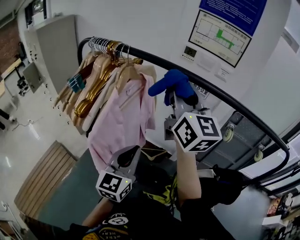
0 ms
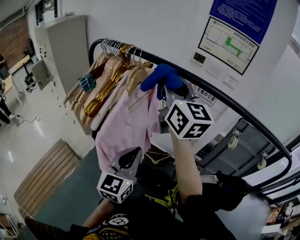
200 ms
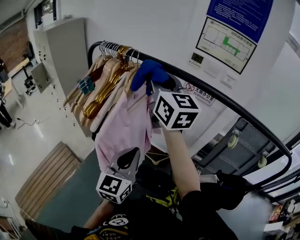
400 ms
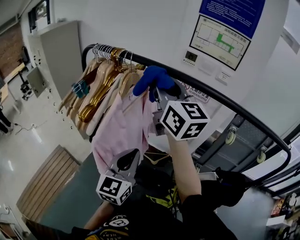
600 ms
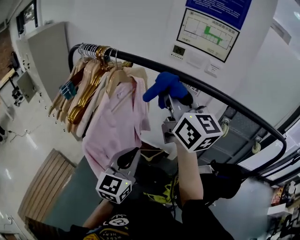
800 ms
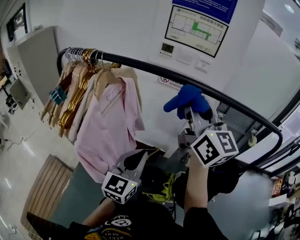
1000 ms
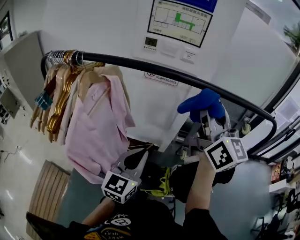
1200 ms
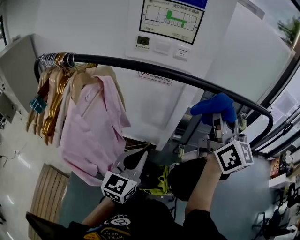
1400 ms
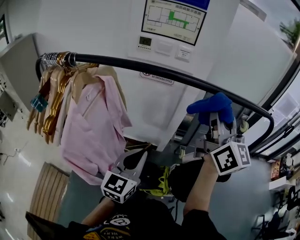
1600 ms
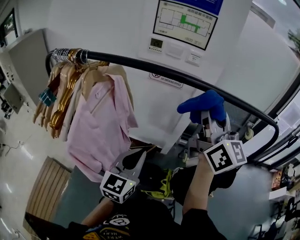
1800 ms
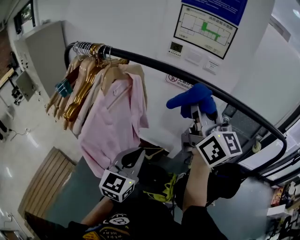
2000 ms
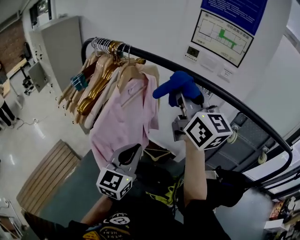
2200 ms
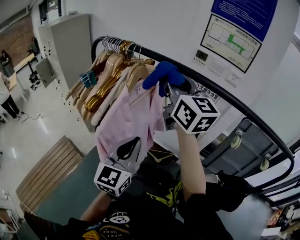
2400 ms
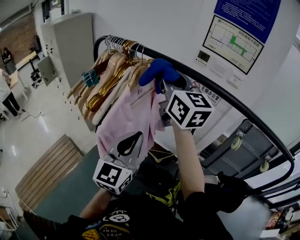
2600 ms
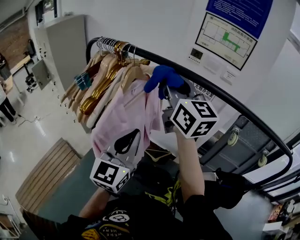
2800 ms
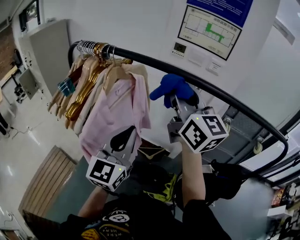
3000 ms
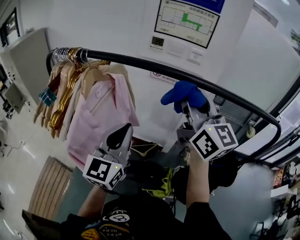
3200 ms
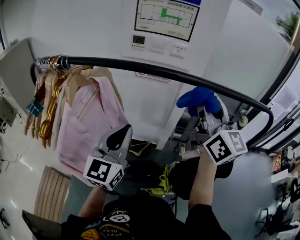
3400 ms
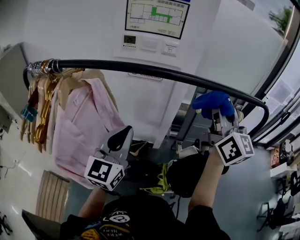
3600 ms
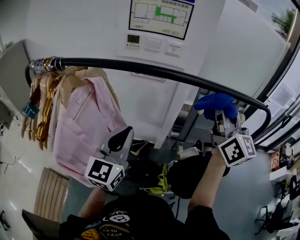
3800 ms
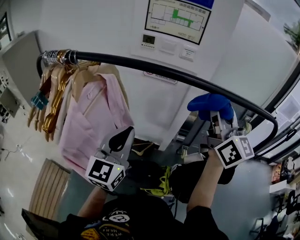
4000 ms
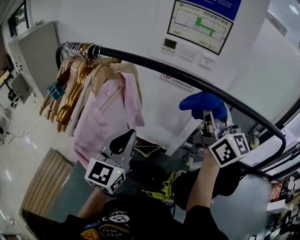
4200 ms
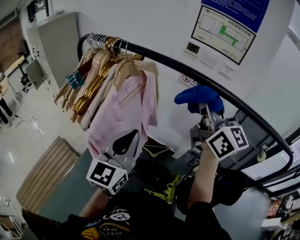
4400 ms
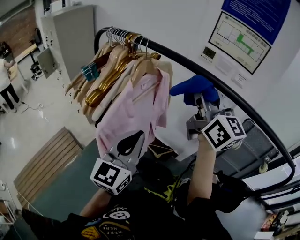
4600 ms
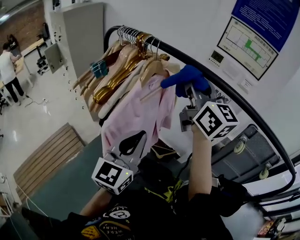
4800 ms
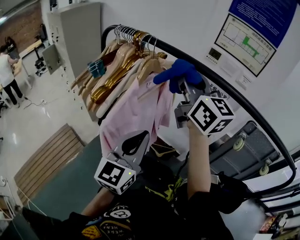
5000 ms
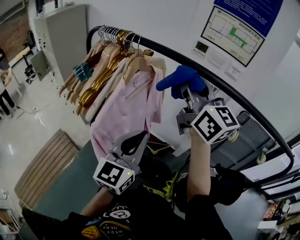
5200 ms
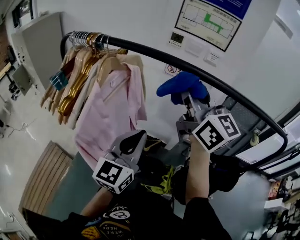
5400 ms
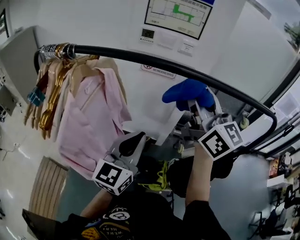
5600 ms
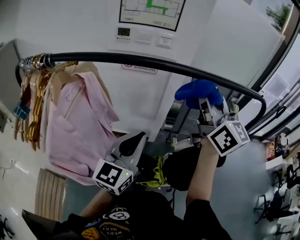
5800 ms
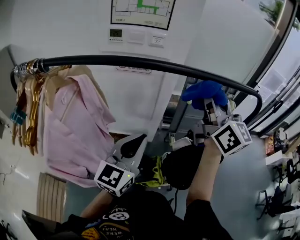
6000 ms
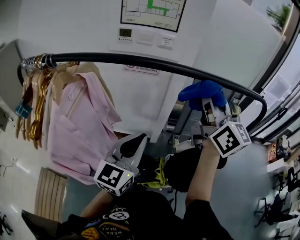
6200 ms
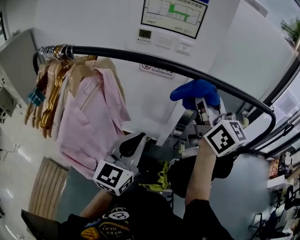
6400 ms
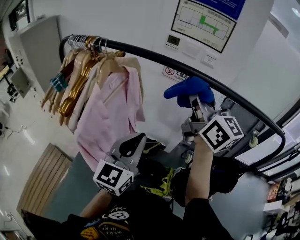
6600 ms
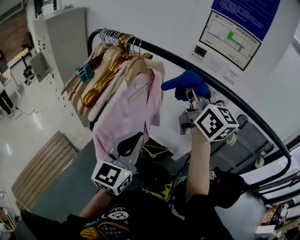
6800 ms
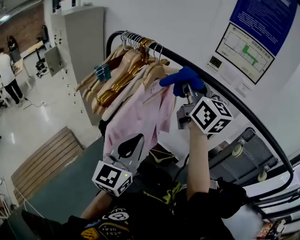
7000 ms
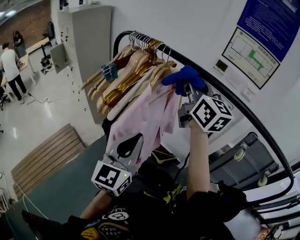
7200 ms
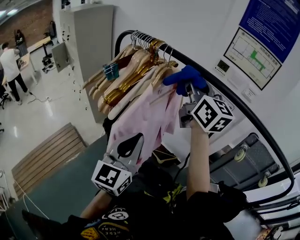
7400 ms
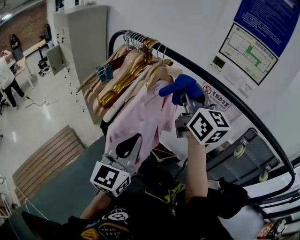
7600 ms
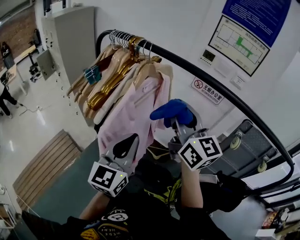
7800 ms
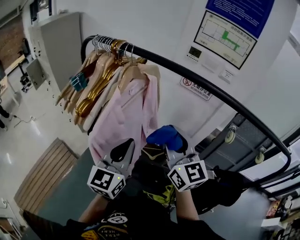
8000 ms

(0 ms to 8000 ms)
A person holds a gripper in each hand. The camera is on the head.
0 ms - 1600 ms: The right gripper moves roughly 25 cm, and swivels some 20 degrees. The left gripper shifts by some 15 cm, and turns by roughly 20 degrees.
1600 ms - 3200 ms: The left gripper moves about 15 cm.
3200 ms - 4800 ms: The right gripper changes place by about 20 cm, and swivels about 20 degrees; the left gripper shifts by approximately 10 cm.
4800 ms - 6400 ms: The left gripper moves approximately 15 cm, and turns by some 30 degrees, while the right gripper moves approximately 25 cm, and swivels roughly 30 degrees.
6400 ms - 8000 ms: The right gripper moves roughly 25 cm, and changes its angle by some 20 degrees. The left gripper moves roughly 15 cm, and turns by some 20 degrees.

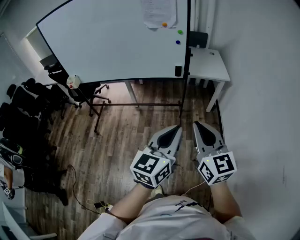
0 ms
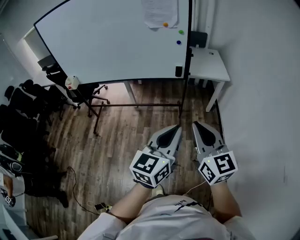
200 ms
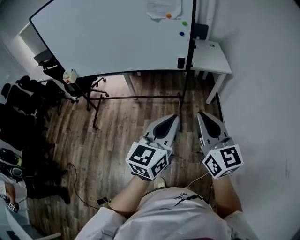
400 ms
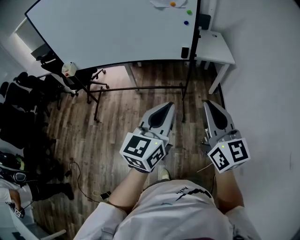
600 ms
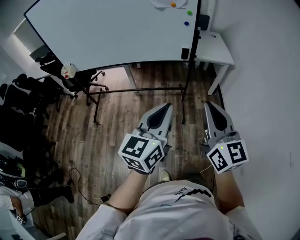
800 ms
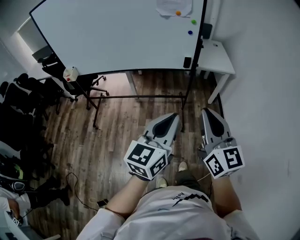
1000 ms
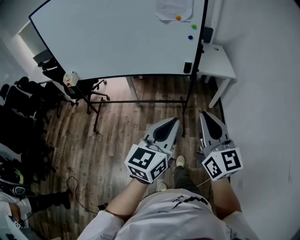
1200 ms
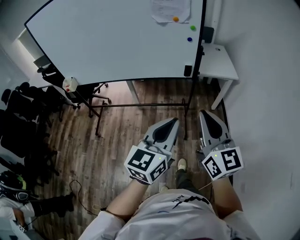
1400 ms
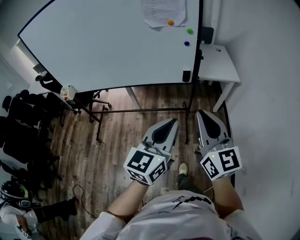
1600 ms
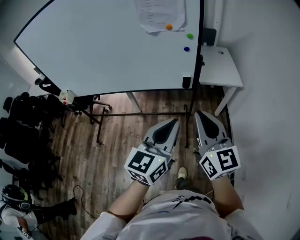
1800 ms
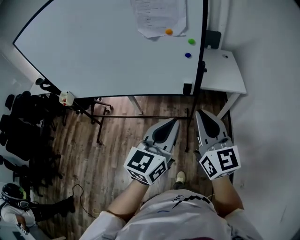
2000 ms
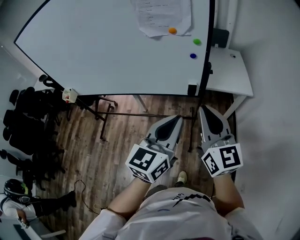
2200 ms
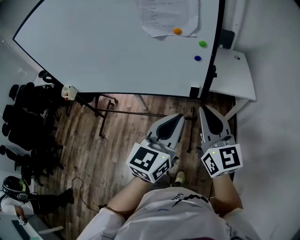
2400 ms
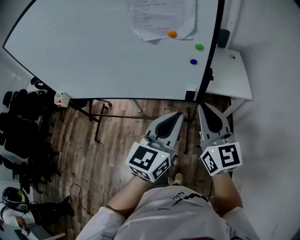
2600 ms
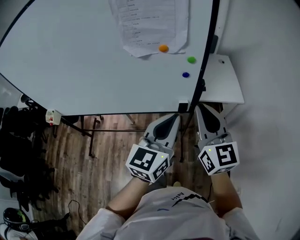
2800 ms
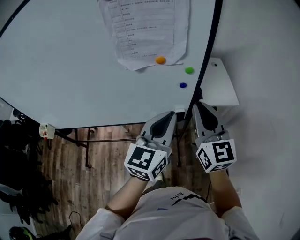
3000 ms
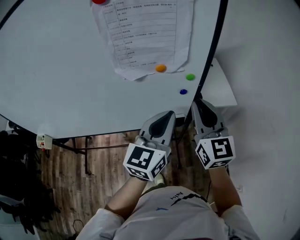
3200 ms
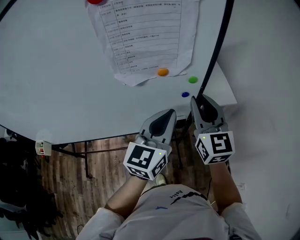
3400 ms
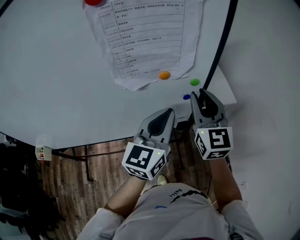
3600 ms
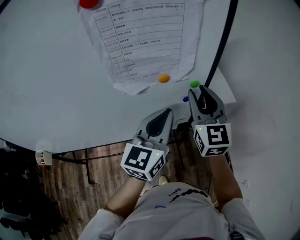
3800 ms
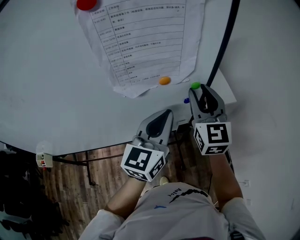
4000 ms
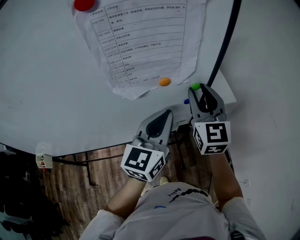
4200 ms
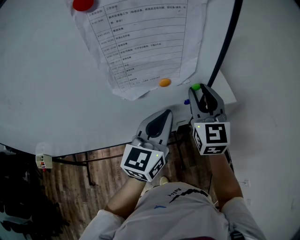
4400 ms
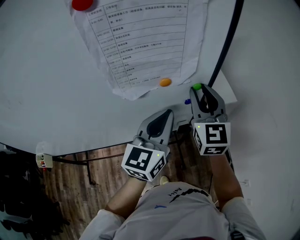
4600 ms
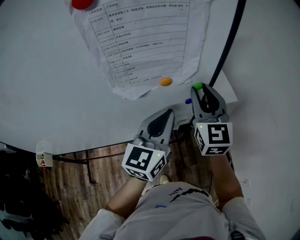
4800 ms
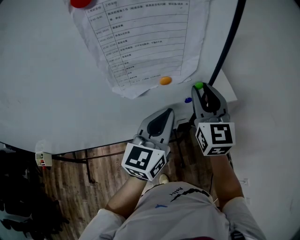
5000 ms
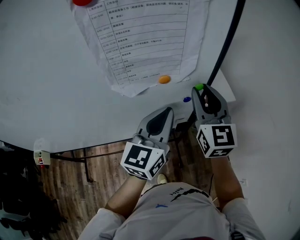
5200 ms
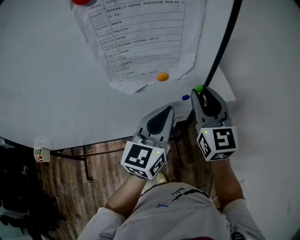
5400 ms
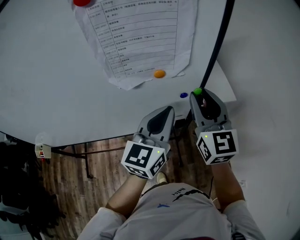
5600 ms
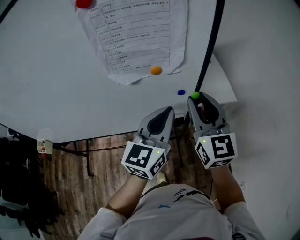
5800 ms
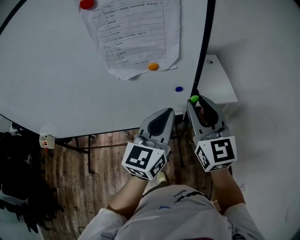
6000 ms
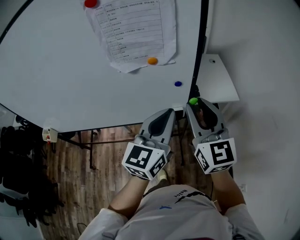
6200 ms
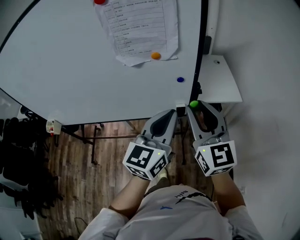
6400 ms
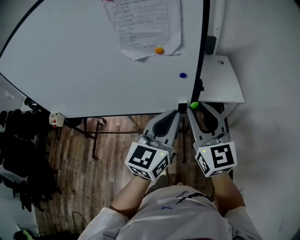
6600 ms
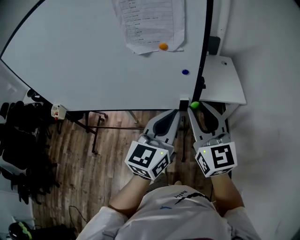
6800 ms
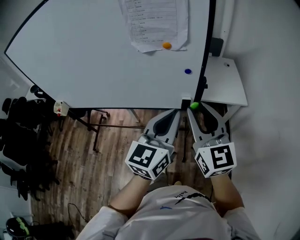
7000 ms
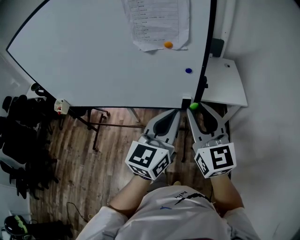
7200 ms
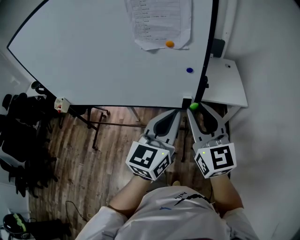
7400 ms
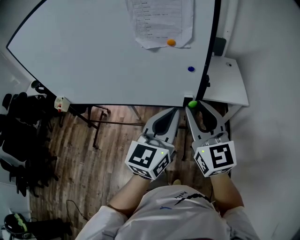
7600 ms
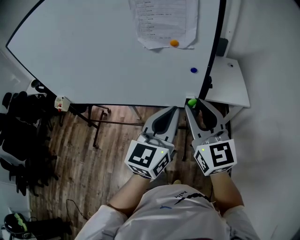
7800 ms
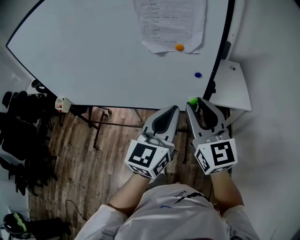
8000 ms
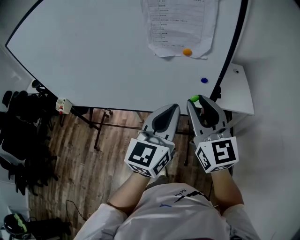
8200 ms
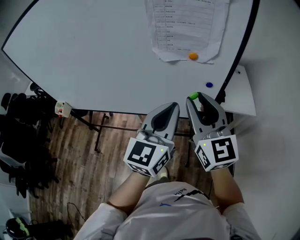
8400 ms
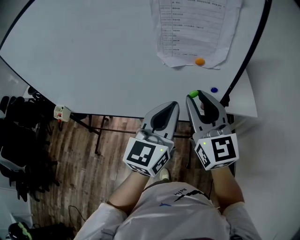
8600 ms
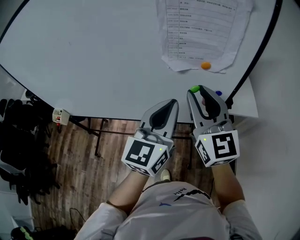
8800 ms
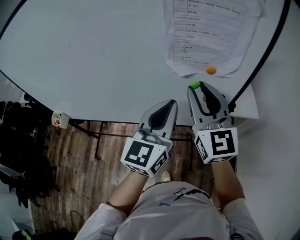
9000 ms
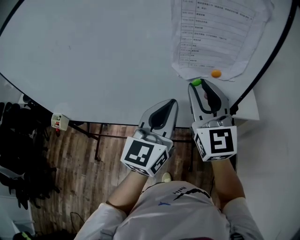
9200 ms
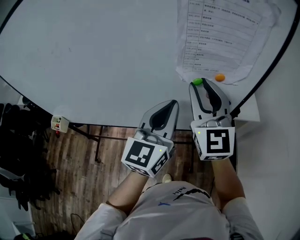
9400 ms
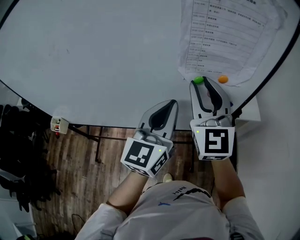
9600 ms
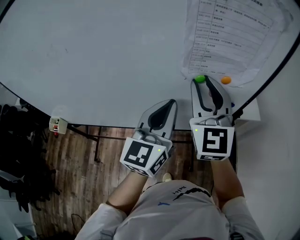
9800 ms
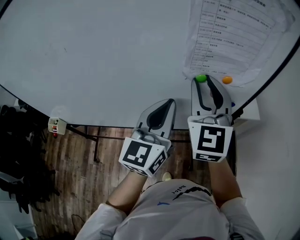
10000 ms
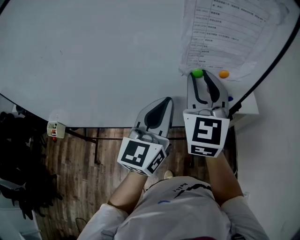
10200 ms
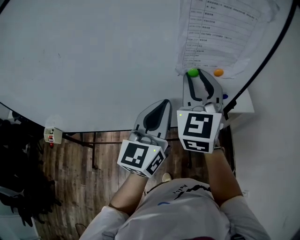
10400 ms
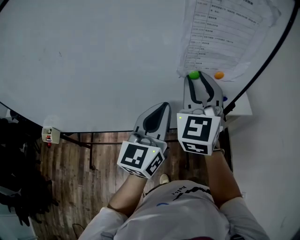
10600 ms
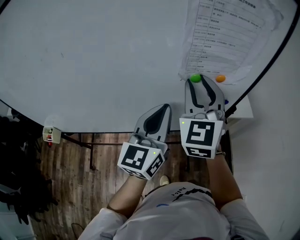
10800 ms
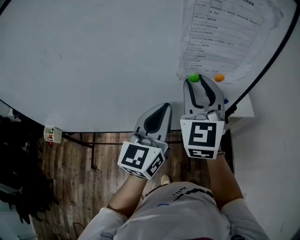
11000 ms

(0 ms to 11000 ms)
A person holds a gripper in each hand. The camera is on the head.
0 ms - 1600 ms: The two grippers go roughly 20 cm forward and to the left.
1600 ms - 3200 ms: Both grippers move forward, roughly 40 cm.
3200 ms - 4800 ms: The left gripper goes roughly 5 cm forward. Meanwhile the right gripper shifts roughly 10 cm forward, and opens up.
4800 ms - 6200 ms: The right gripper travels backward by roughly 15 cm. Meanwhile the left gripper travels backward and to the right by some 10 cm.
6200 ms - 7800 ms: Both grippers move backward, some 10 cm.
7800 ms - 9400 ms: Both grippers travel together forward and to the left, approximately 25 cm.

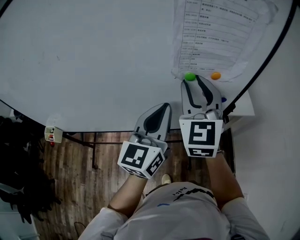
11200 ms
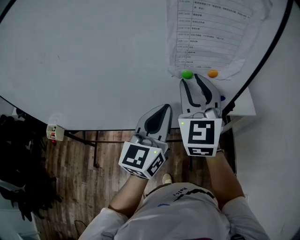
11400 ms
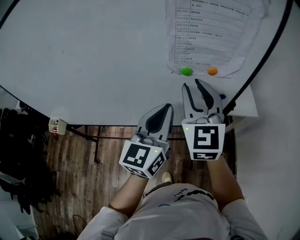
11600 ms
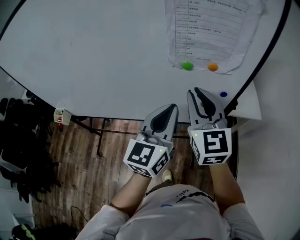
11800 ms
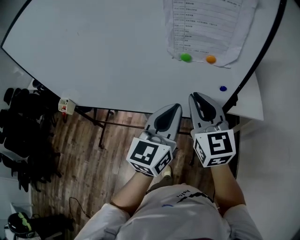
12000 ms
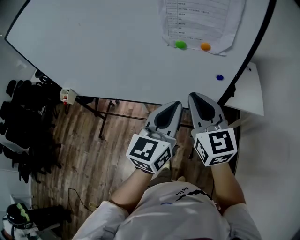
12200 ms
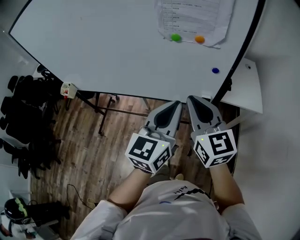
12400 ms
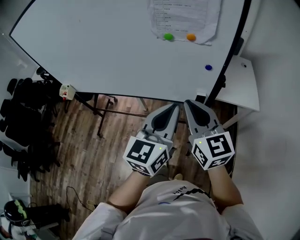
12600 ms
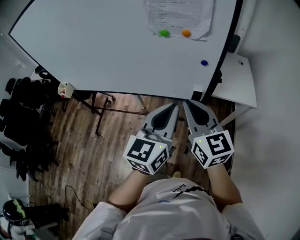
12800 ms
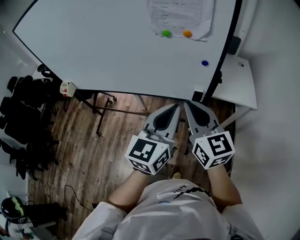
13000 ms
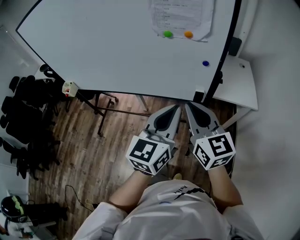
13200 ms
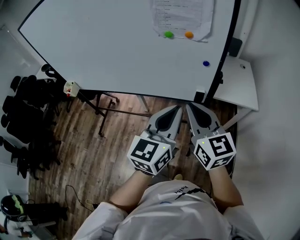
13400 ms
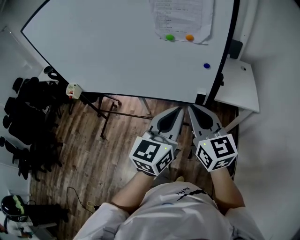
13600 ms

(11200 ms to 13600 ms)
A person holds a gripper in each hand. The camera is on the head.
11200 ms - 12400 ms: The right gripper goes some 20 cm backward, downward and to the right, turns by approximately 40 degrees, and closes up; the left gripper moves backward and to the right, about 15 cm.
12400 ms - 13600 ms: Both grippers travel together backward, about 10 cm.

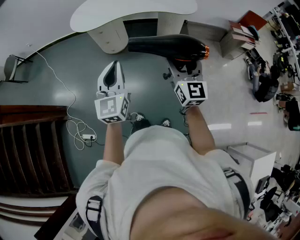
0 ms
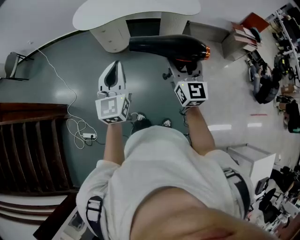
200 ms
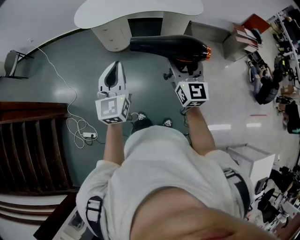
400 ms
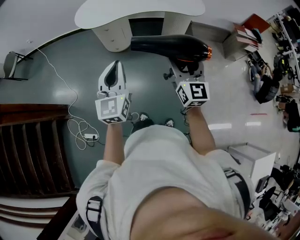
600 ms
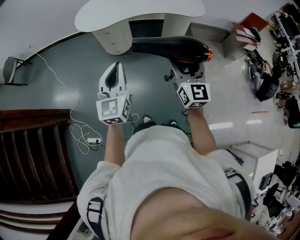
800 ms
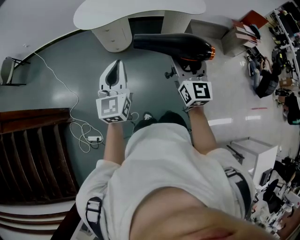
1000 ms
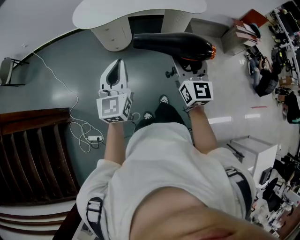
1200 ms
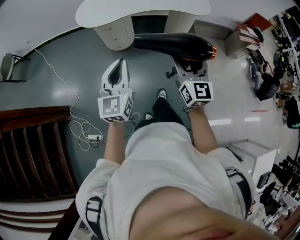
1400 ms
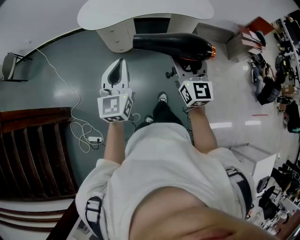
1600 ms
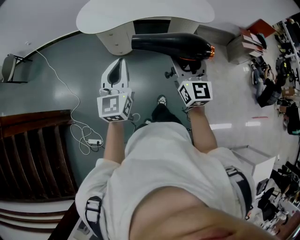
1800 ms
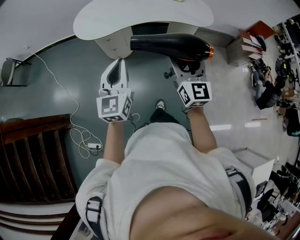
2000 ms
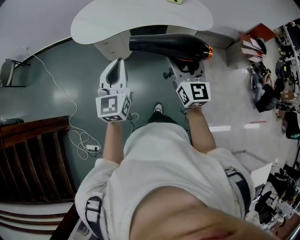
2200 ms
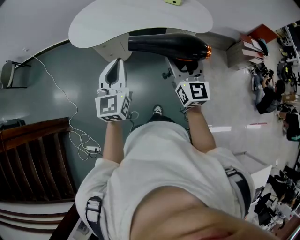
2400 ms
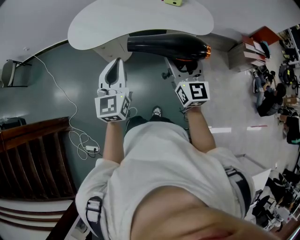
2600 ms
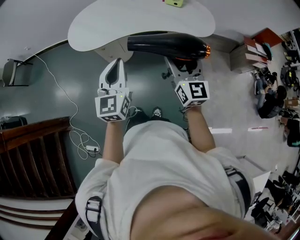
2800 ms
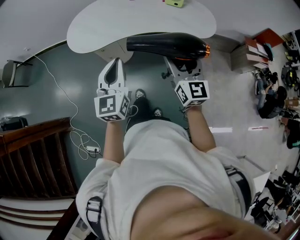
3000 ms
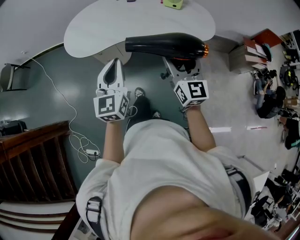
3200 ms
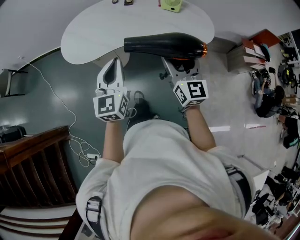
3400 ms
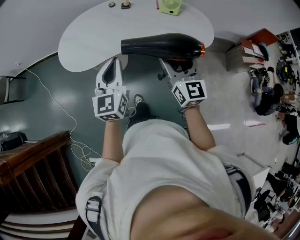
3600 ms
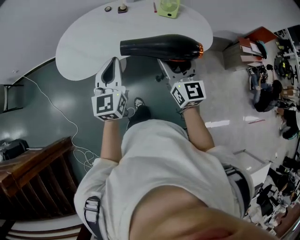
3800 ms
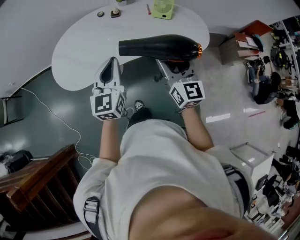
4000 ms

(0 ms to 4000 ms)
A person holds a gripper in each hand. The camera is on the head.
0 ms - 1400 ms: Both grippers move to the left and forward, roughly 15 cm.
1400 ms - 2600 ms: The grippers both shift forward and to the right by about 25 cm.
2600 ms - 4000 ms: Both grippers move forward, about 25 cm.
